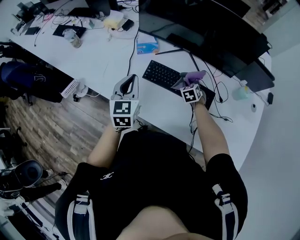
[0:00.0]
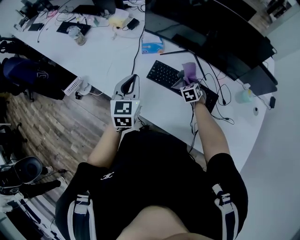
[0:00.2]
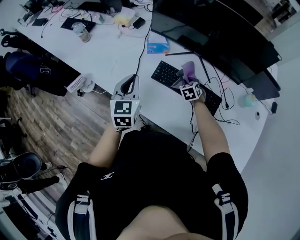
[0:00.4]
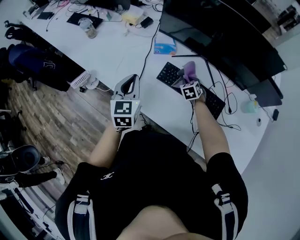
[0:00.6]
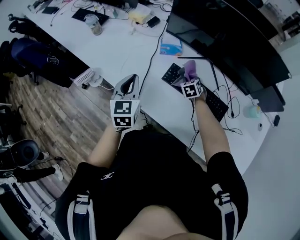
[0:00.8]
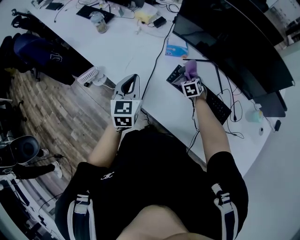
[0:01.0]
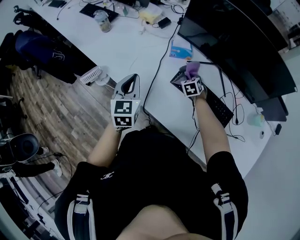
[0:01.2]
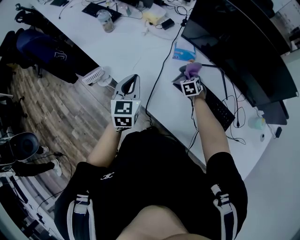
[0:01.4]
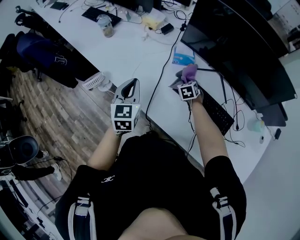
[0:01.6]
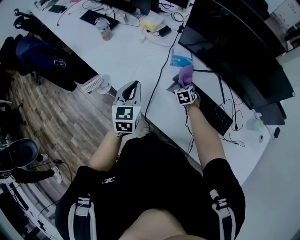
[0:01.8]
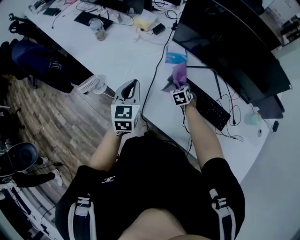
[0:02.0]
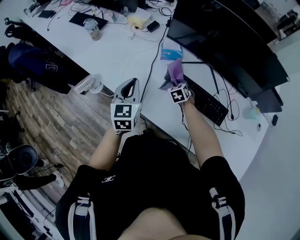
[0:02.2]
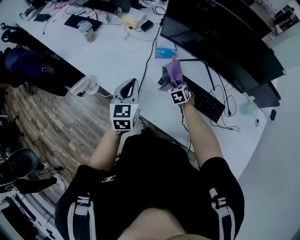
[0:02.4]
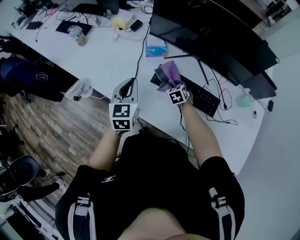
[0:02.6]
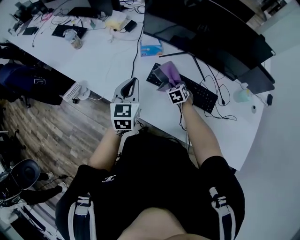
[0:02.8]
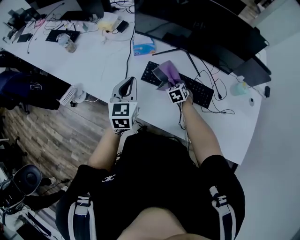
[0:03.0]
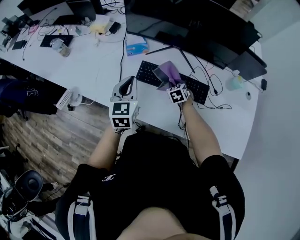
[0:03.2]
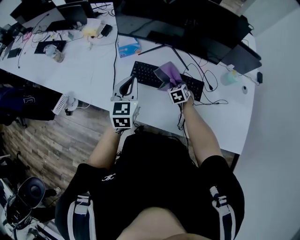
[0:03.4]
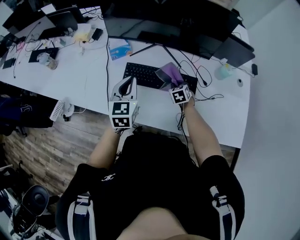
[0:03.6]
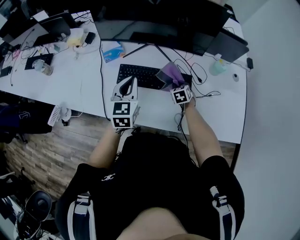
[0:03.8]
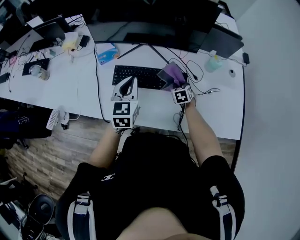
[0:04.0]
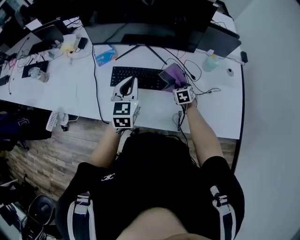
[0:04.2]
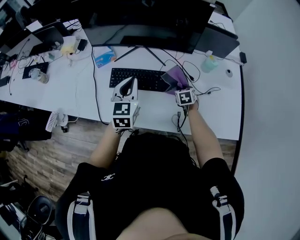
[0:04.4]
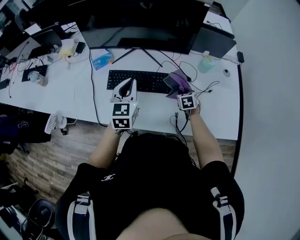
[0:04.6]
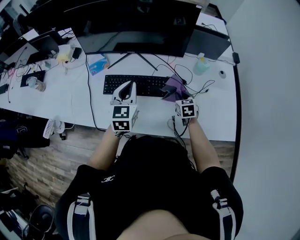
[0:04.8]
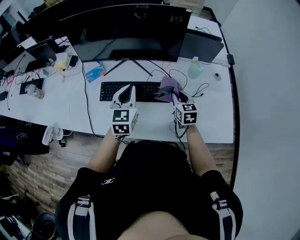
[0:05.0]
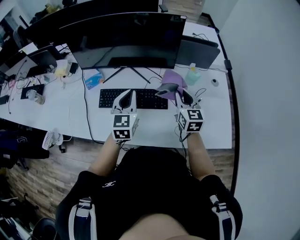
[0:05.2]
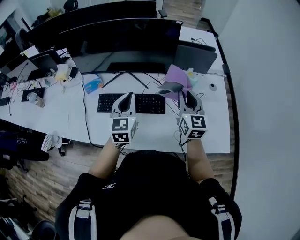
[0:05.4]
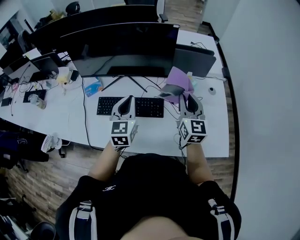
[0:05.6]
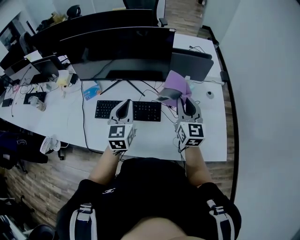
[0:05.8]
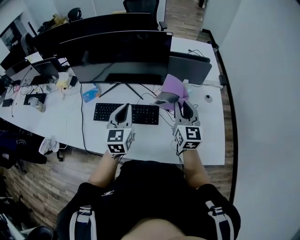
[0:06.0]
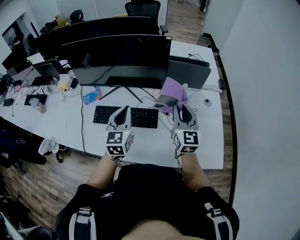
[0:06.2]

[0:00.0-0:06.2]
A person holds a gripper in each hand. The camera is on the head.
0:00.0 to 0:01.6: The left gripper moves to the left, roughly 20 cm. Meanwhile the right gripper heads to the left and forward, covering approximately 25 cm.
0:01.6 to 0:03.2: The left gripper goes roughly 20 cm to the right, while the right gripper heads to the right and backward, covering some 20 cm.
0:03.2 to 0:04.6: The two grippers go approximately 20 cm to the right. The right gripper swivels about 30 degrees.
0:04.6 to 0:06.2: The left gripper moves to the right and upward, roughly 15 cm; the right gripper goes approximately 30 cm upward, and angles its fingers upward, by about 60 degrees.

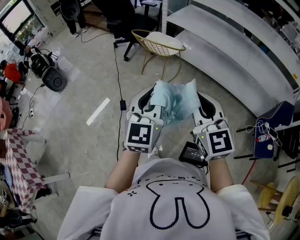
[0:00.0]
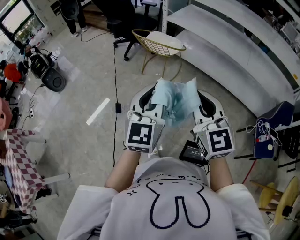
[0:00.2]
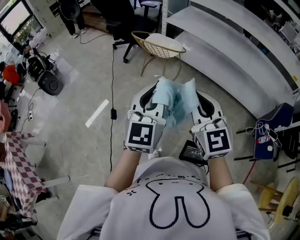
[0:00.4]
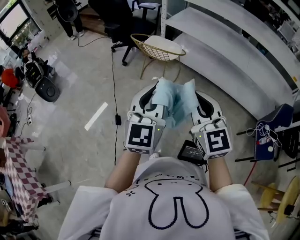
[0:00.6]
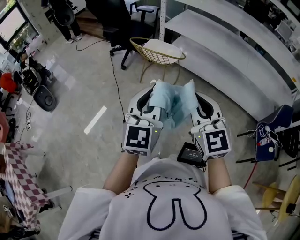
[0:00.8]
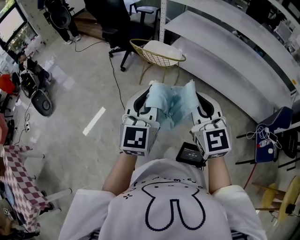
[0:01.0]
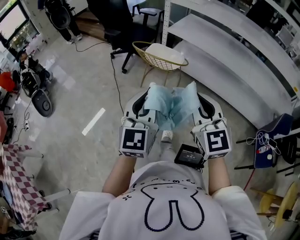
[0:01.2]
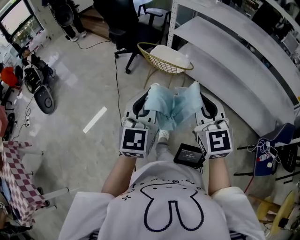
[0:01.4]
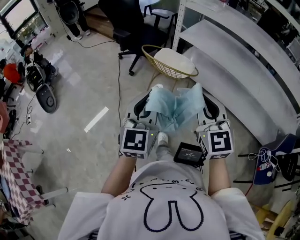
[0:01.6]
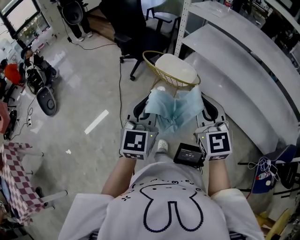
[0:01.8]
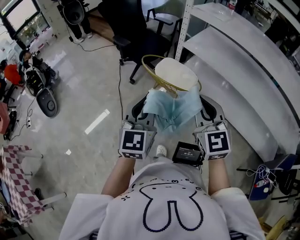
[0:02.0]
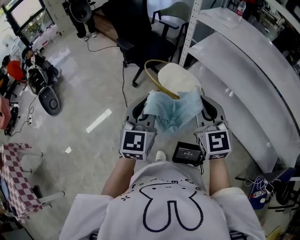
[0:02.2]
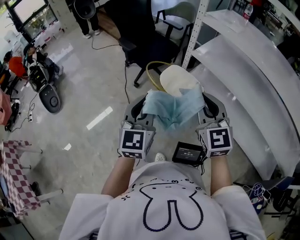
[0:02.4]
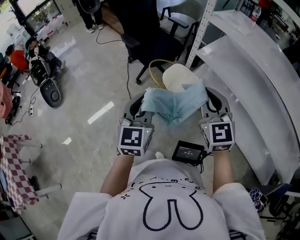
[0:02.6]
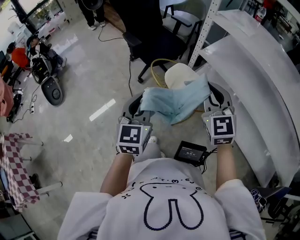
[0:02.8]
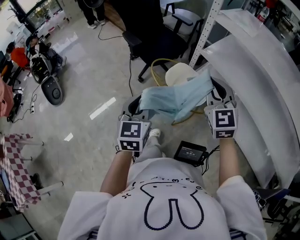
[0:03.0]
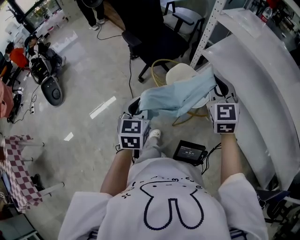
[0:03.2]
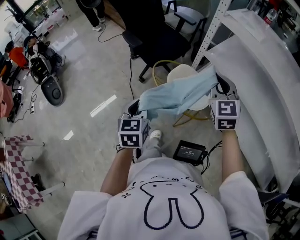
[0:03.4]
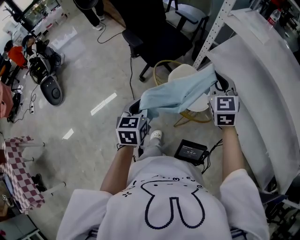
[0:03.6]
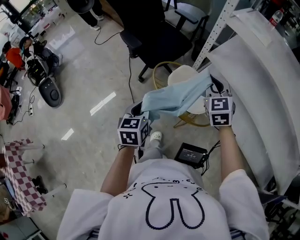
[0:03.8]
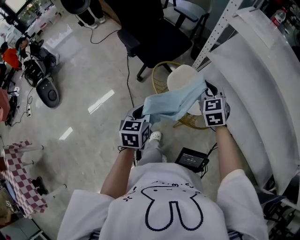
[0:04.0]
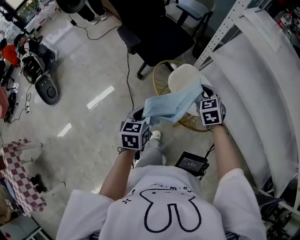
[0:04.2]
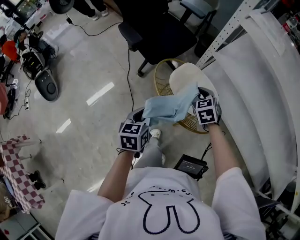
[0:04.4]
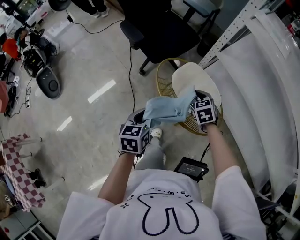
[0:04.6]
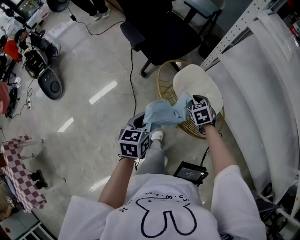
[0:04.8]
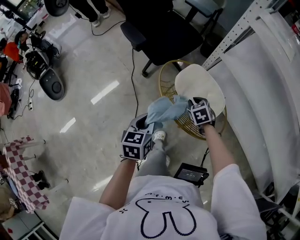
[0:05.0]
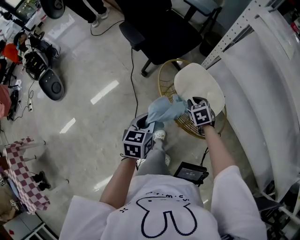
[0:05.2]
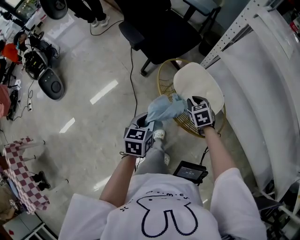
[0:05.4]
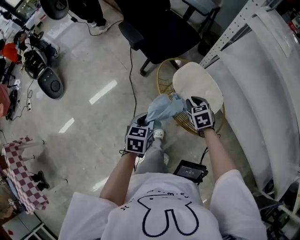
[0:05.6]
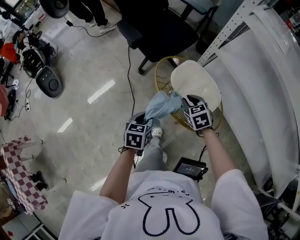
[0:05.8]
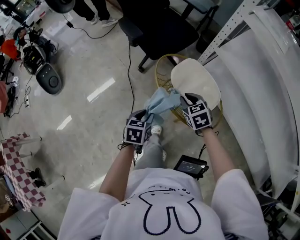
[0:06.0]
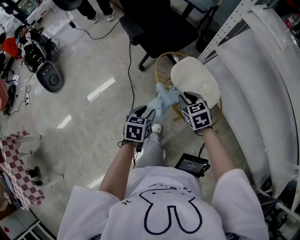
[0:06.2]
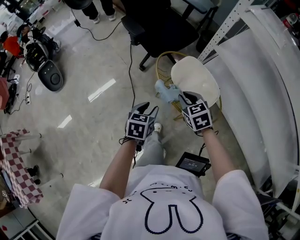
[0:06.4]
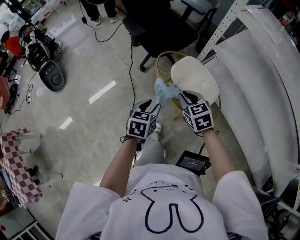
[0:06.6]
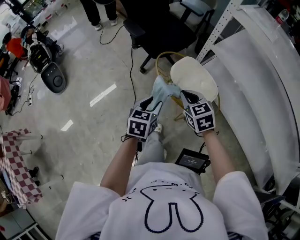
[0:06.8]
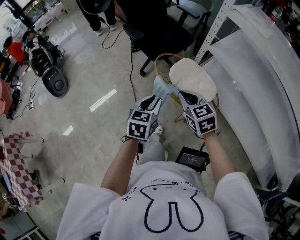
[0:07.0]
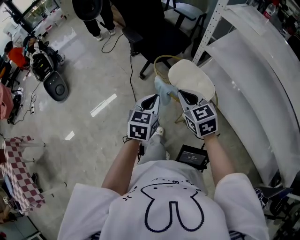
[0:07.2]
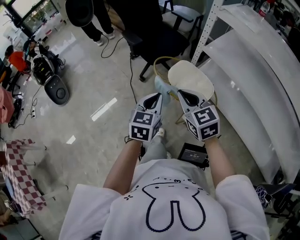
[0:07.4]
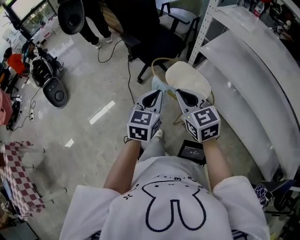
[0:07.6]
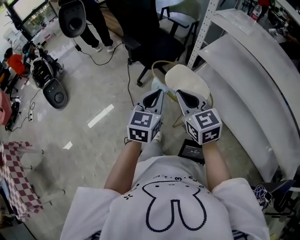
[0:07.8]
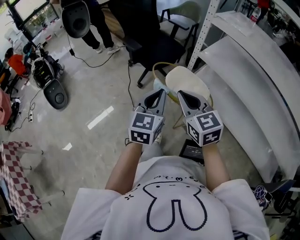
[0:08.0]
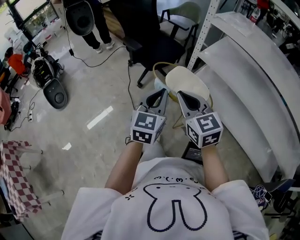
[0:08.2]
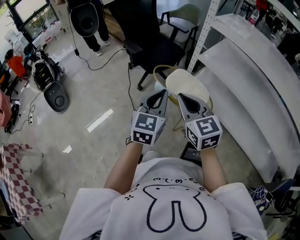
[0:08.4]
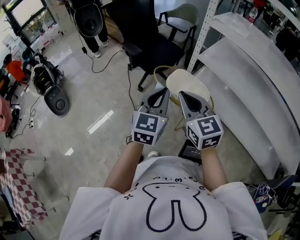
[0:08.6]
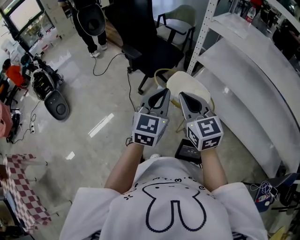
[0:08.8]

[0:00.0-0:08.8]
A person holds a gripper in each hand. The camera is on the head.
0:00.0 to 0:01.4: The left gripper goes roughly 15 cm forward and to the left. Meanwhile the right gripper travels forward by roughly 15 cm.
0:01.4 to 0:03.0: Both grippers travel together forward, about 40 cm. The left gripper turns by roughly 20 degrees.
0:03.0 to 0:04.4: The left gripper is displaced downward and forward by some 20 cm, and turns by some 30 degrees; the right gripper shifts about 30 cm downward and forward, and angles its fingers downward, by some 30 degrees.
0:04.4 to 0:05.8: Both grippers move downward, approximately 5 cm.
0:05.8 to 0:07.4: The grippers both shift upward and backward by roughly 25 cm. The left gripper changes its angle by about 30 degrees, while the right gripper rotates about 30 degrees.
0:07.4 to 0:08.8: The two grippers go about 10 cm upward.

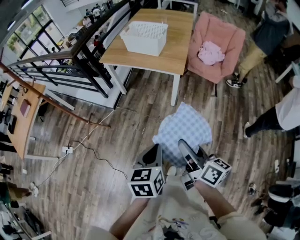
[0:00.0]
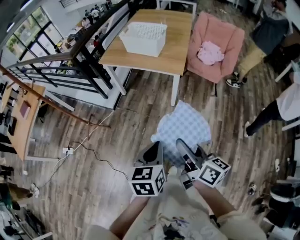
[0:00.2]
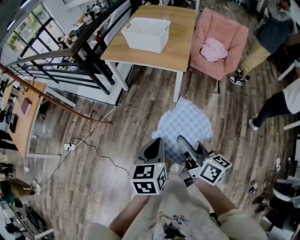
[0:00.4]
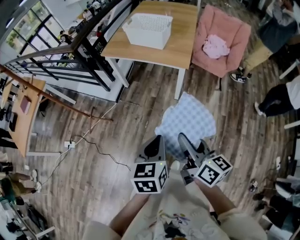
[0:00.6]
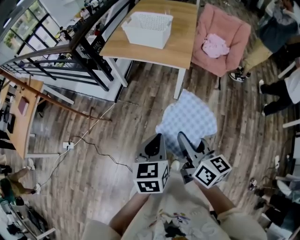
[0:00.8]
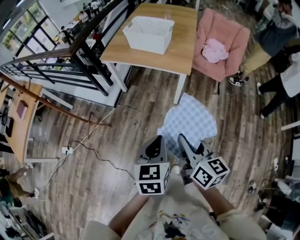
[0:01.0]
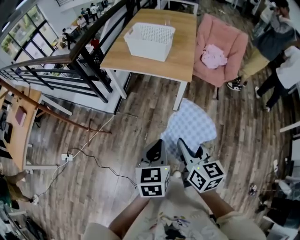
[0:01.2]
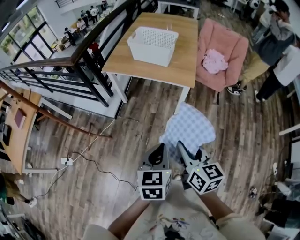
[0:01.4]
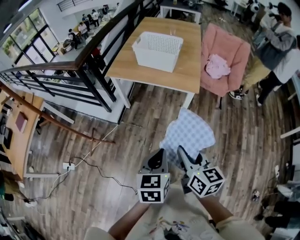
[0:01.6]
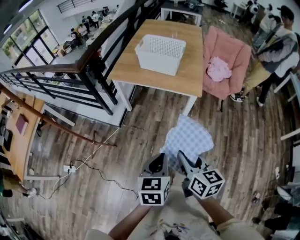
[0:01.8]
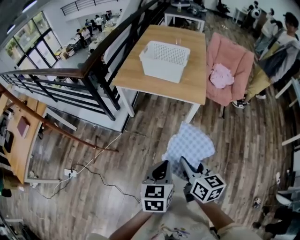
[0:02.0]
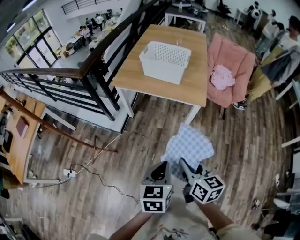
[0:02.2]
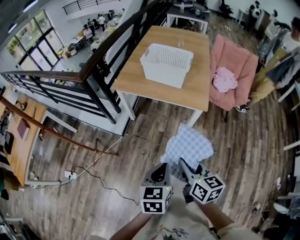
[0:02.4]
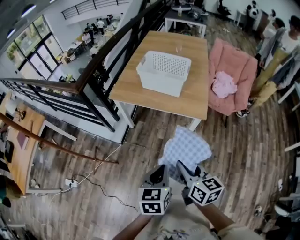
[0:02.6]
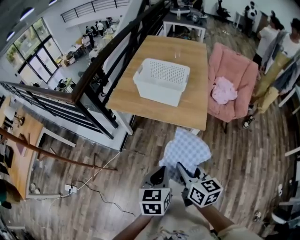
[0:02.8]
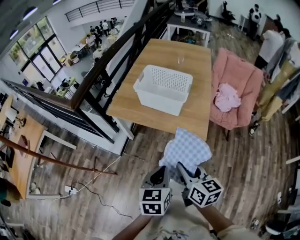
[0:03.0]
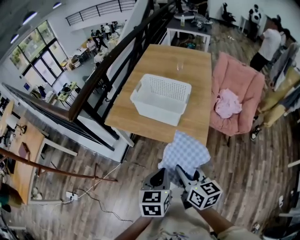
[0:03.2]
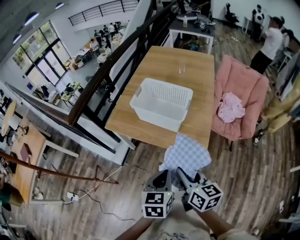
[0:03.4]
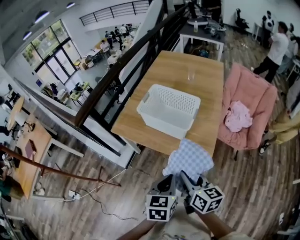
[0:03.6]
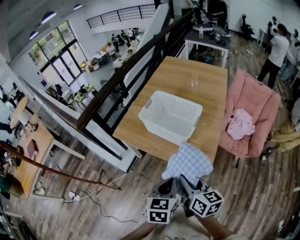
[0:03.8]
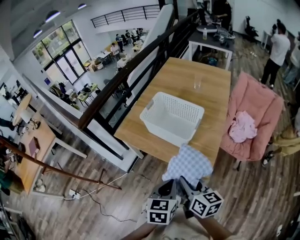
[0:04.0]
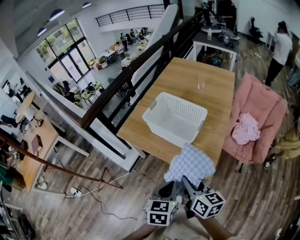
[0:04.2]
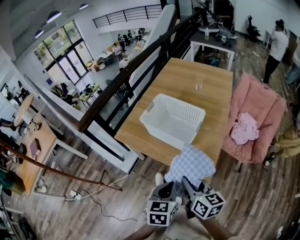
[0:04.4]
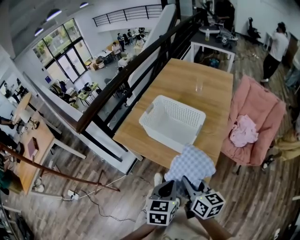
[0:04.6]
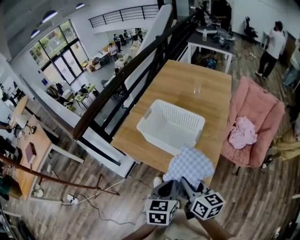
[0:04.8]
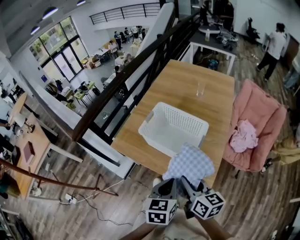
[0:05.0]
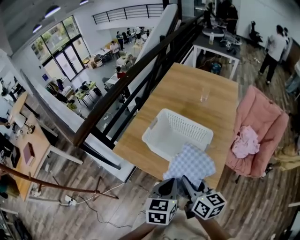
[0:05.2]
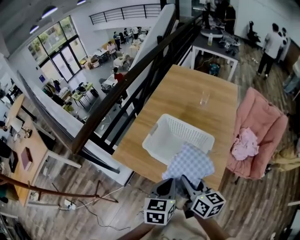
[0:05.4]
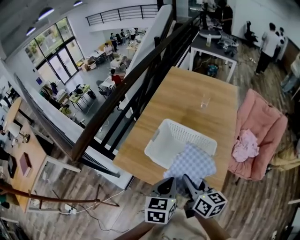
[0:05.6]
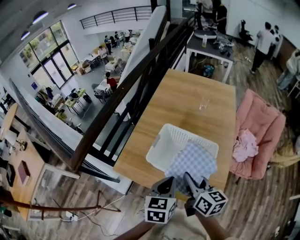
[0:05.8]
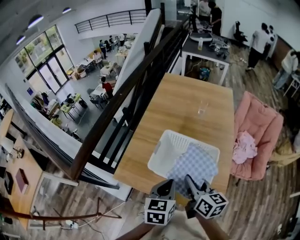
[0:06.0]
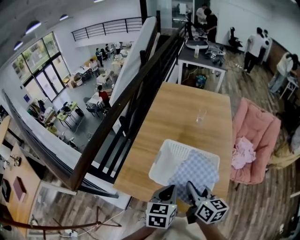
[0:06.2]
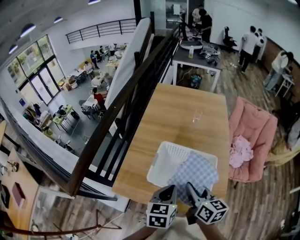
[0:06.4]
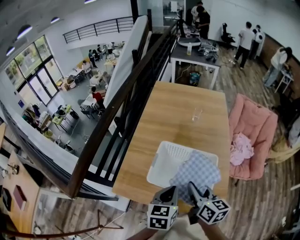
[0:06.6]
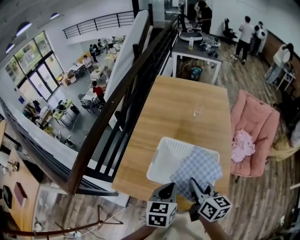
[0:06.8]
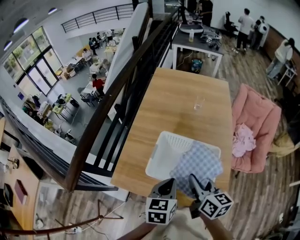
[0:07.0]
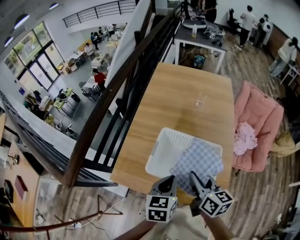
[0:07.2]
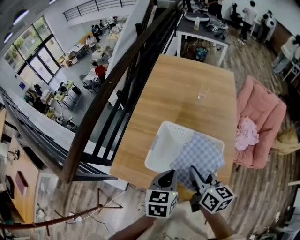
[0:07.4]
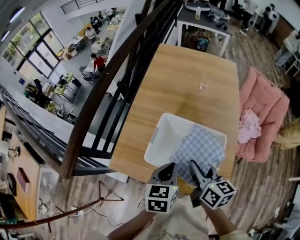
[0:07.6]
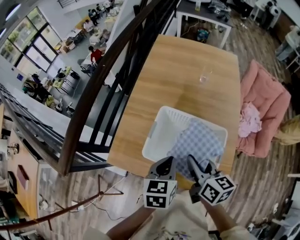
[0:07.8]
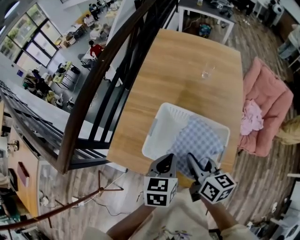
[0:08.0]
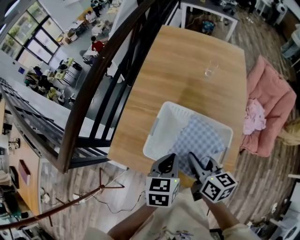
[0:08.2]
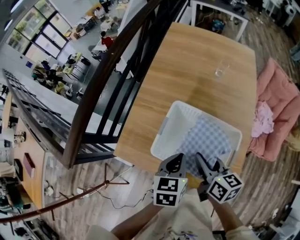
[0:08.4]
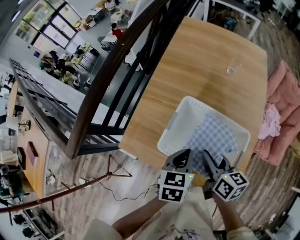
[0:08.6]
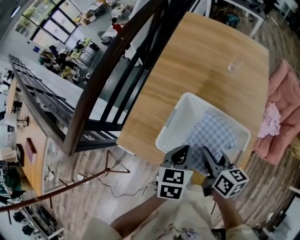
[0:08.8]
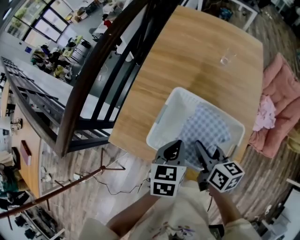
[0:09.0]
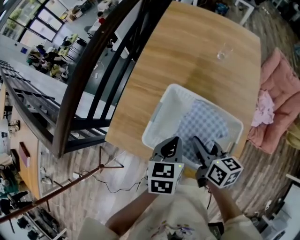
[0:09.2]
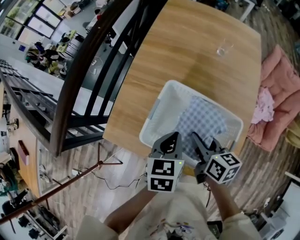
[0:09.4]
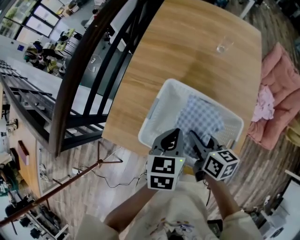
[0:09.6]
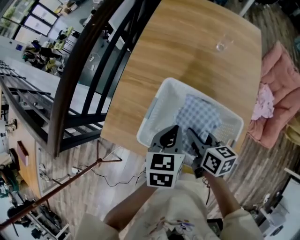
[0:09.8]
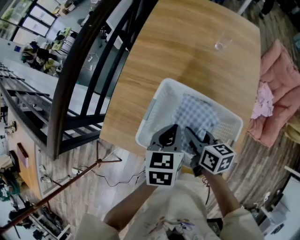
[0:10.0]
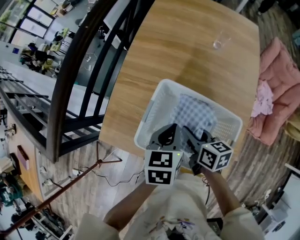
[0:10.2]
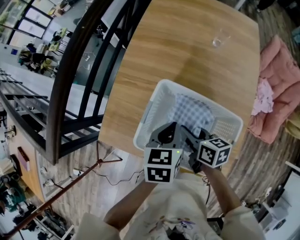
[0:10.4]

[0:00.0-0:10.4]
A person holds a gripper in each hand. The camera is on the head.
0:00.0 to 0:01.4: The grippers both shift forward and to the left by roughly 15 cm. The right gripper rotates about 30 degrees.
0:01.4 to 0:03.0: The two grippers go approximately 25 cm forward.
0:03.0 to 0:04.4: Both grippers travel together forward and to the right, approximately 15 cm.
0:04.4 to 0:06.0: Both grippers move forward, some 25 cm.
0:06.0 to 0:07.4: The grippers make only small movements.
0:07.4 to 0:09.0: The two grippers go approximately 5 cm downward.
0:09.0 to 0:10.4: The right gripper moves downward, about 10 cm; the left gripper travels forward by some 5 cm.
